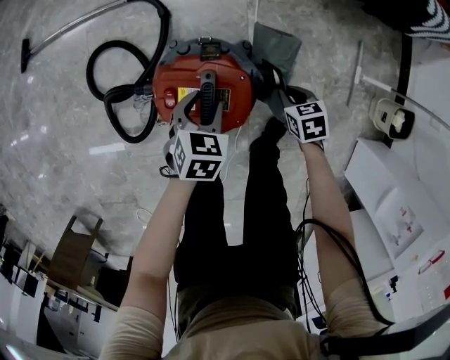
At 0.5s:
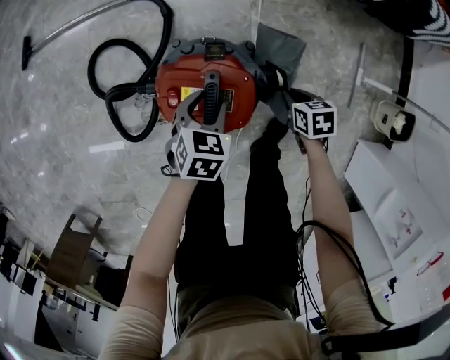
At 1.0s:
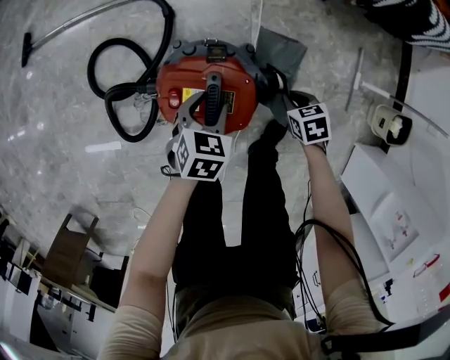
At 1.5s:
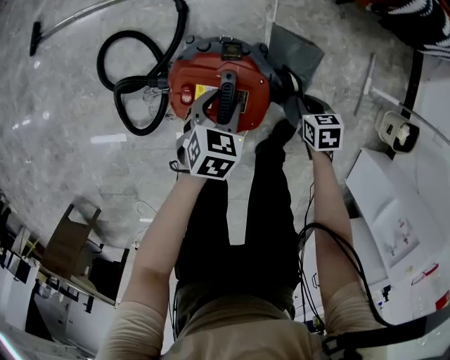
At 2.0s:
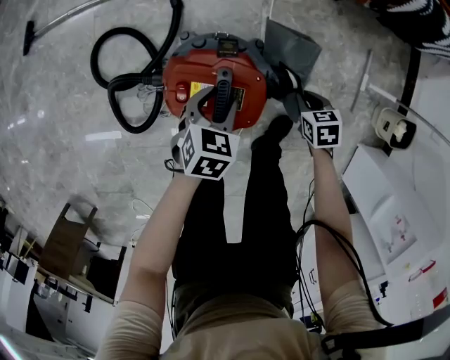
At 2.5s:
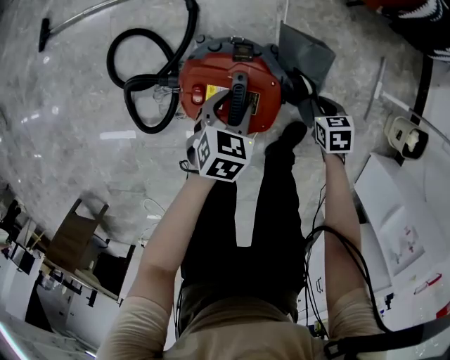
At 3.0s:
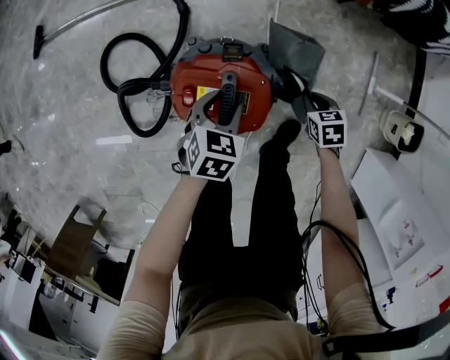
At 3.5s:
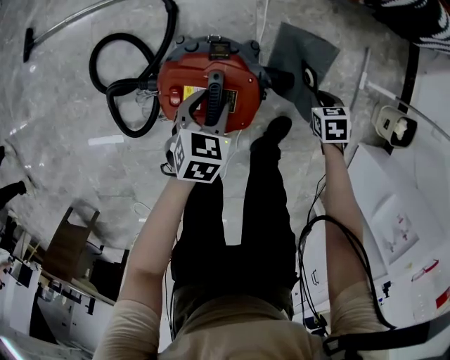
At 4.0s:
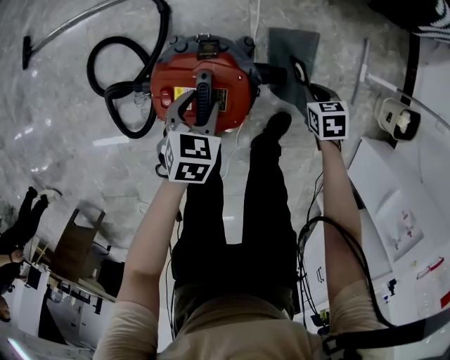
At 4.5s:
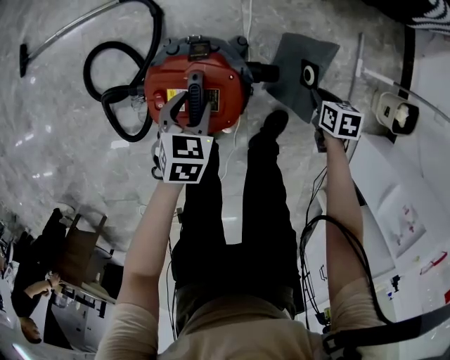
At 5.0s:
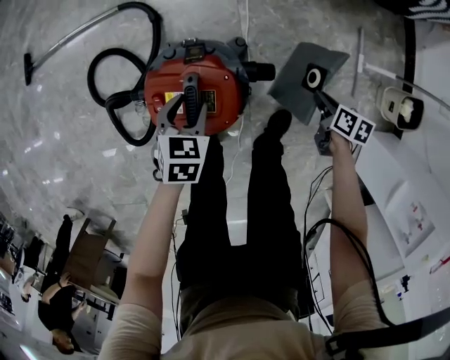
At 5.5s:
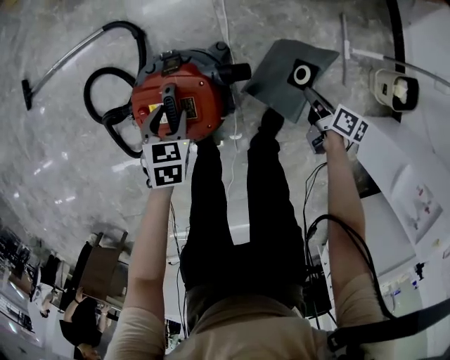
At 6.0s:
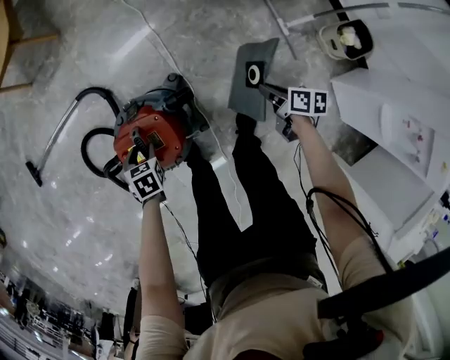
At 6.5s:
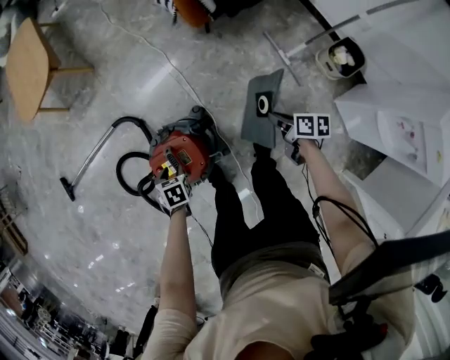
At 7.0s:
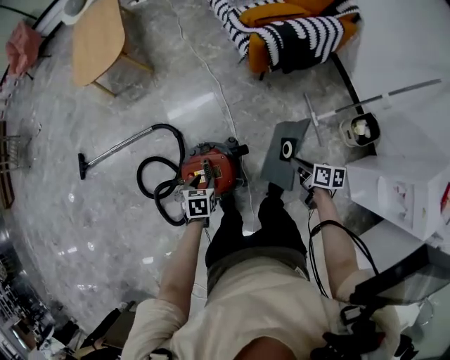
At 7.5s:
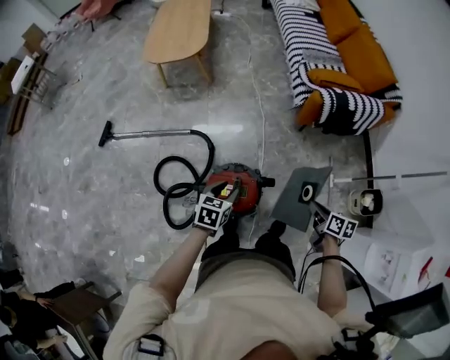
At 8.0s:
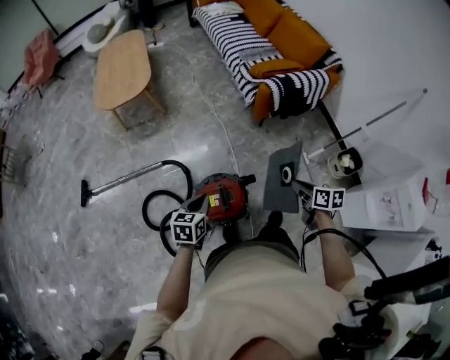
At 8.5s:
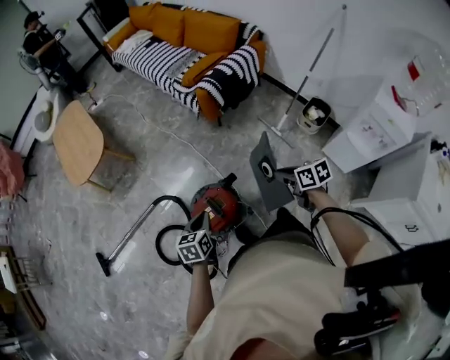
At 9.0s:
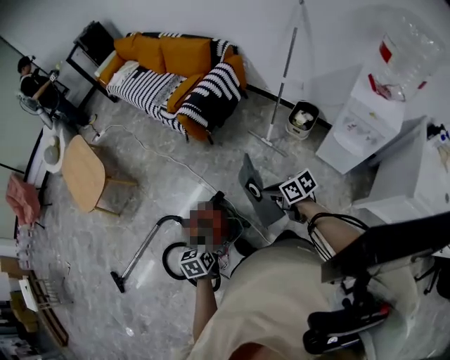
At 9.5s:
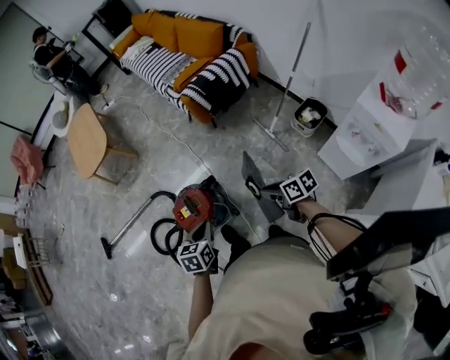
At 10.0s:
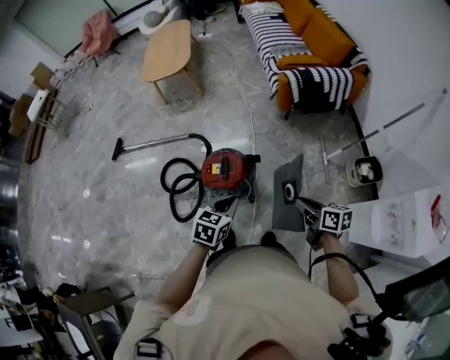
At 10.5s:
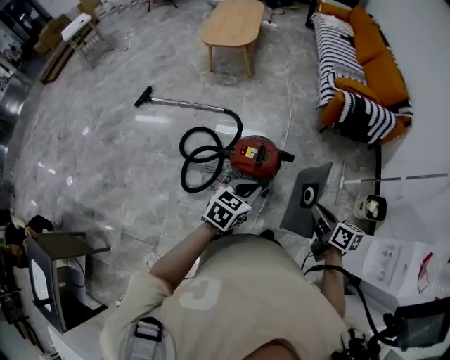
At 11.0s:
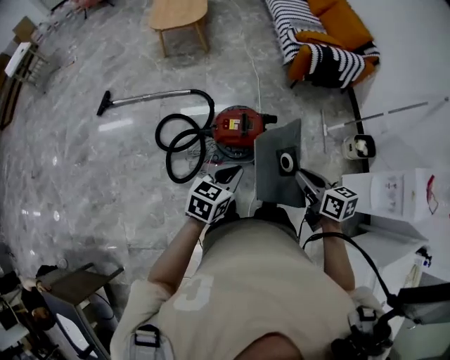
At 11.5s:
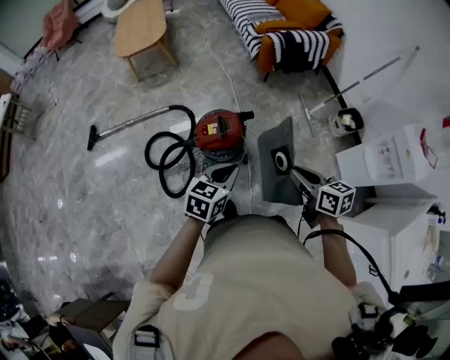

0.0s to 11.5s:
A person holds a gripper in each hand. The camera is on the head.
0.0s to 2.0s: The grippers move only a little.
2.0s to 4.0s: The right gripper moves some 5 cm.
4.0s to 6.0s: The right gripper goes some 15 cm to the right, backward and upward, and twists some 50 degrees clockwise, seen from behind.
6.0s to 7.5s: The grippers both shift upward by about 30 cm. The left gripper swivels approximately 30 degrees.
7.5s to 9.5s: Both grippers move backward and to the right, roughly 25 cm. The left gripper closes.
9.5s to 11.5s: The left gripper is displaced to the left and backward by about 15 cm. The right gripper heads to the left, backward and upward, covering approximately 25 cm.

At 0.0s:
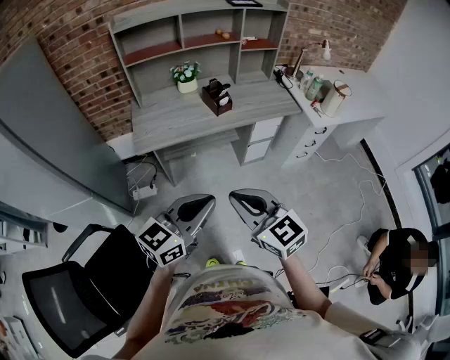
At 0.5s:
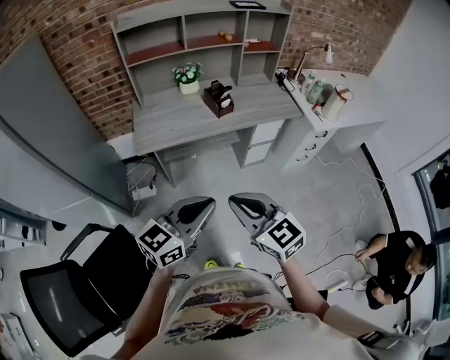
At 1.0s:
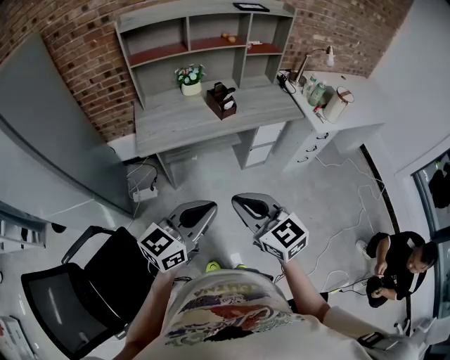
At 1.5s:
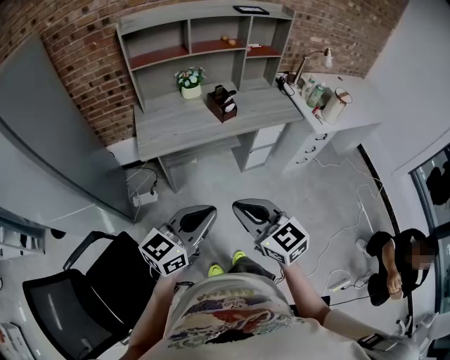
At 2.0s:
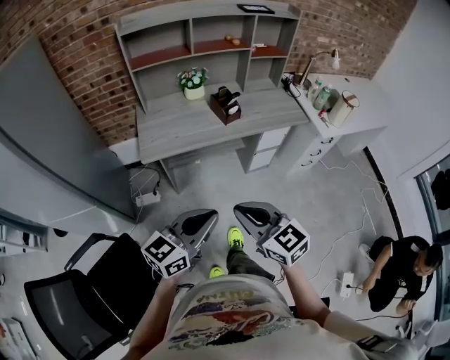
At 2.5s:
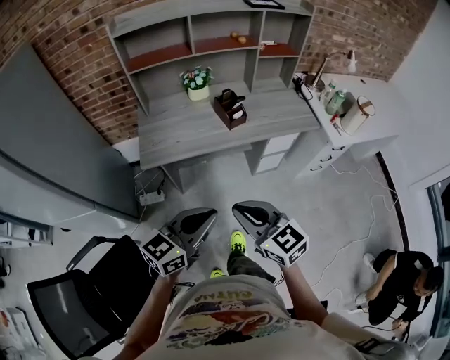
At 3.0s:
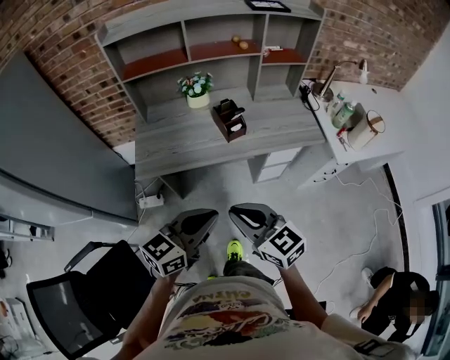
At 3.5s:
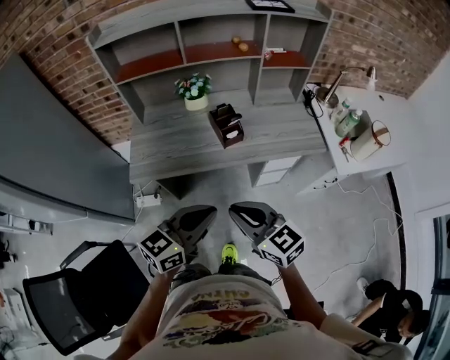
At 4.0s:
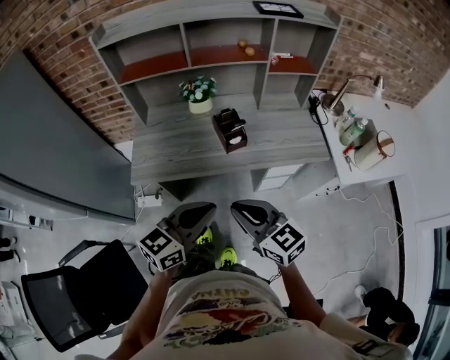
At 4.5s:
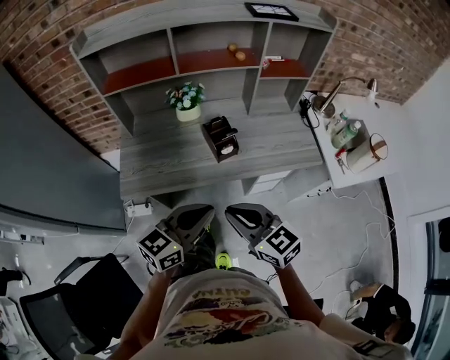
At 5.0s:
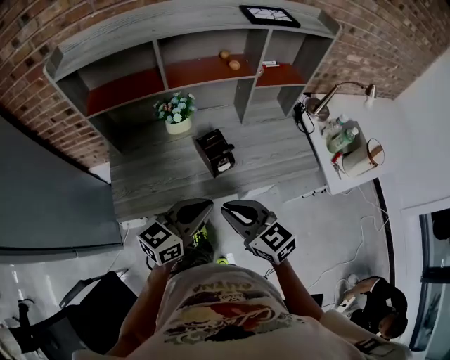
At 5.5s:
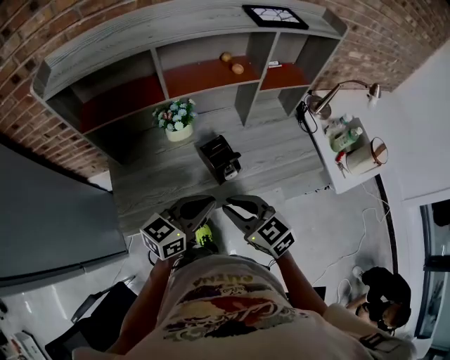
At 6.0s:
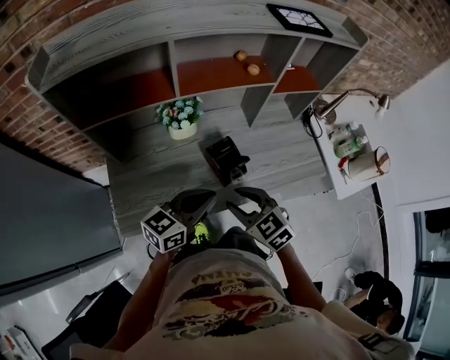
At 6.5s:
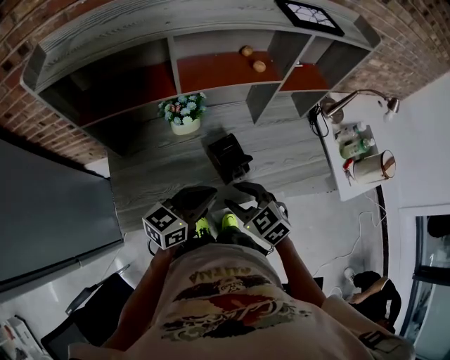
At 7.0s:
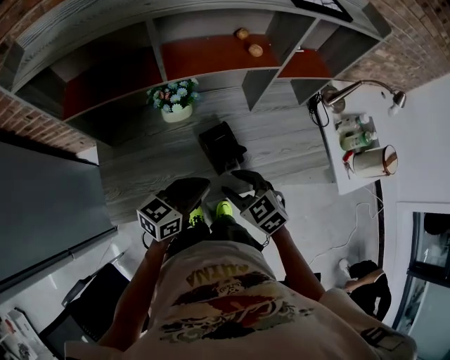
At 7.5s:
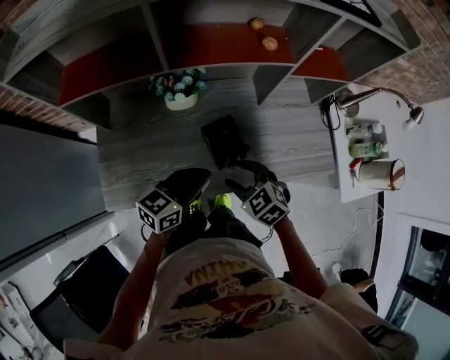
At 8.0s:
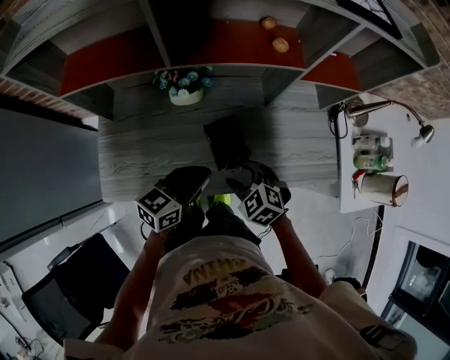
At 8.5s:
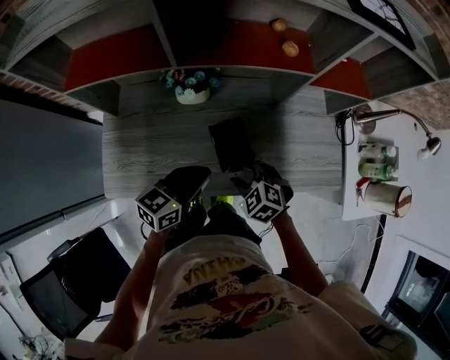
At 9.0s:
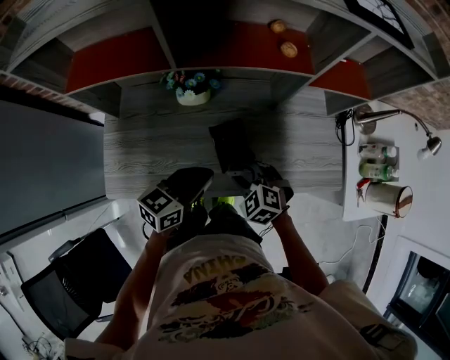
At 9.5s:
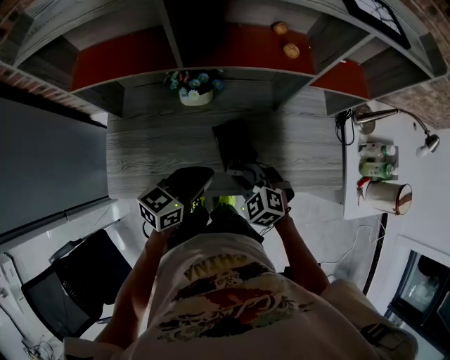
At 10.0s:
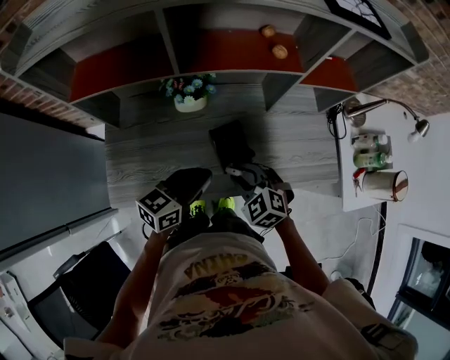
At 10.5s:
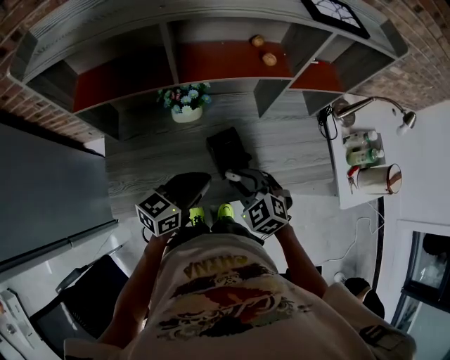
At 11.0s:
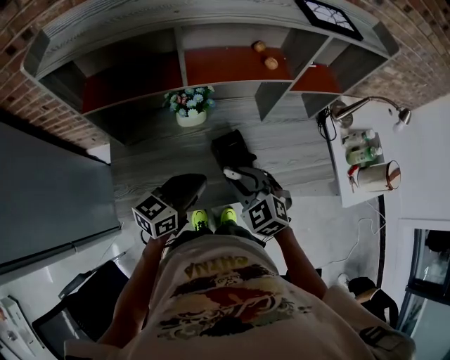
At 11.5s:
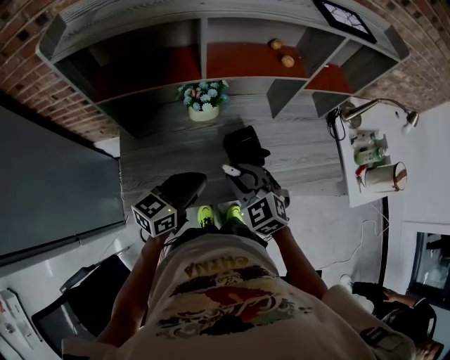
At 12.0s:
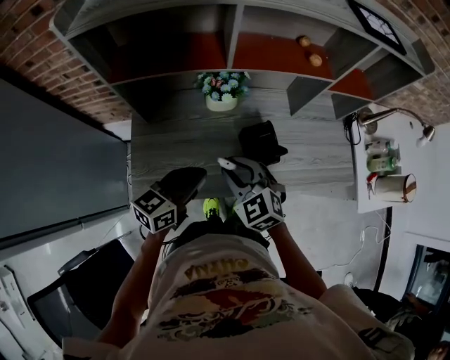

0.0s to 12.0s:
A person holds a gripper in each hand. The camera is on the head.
0.0s to 2.0s: The grippers make only small movements.
2.0s to 4.0s: Both grippers travel together forward and to the right, about 25 cm.
4.0s to 6.0s: Both grippers move forward, approximately 25 cm. The right gripper turns by approximately 30 degrees, and opens.
6.0s to 8.0s: Both grippers travel together downward and forward, roughly 10 cm. The right gripper turns by some 30 degrees.
8.0s to 10.0s: The right gripper closes its fingers.
10.0s to 12.0s: The left gripper is displaced to the left by about 10 cm; the right gripper travels to the left and upward by roughly 15 cm.

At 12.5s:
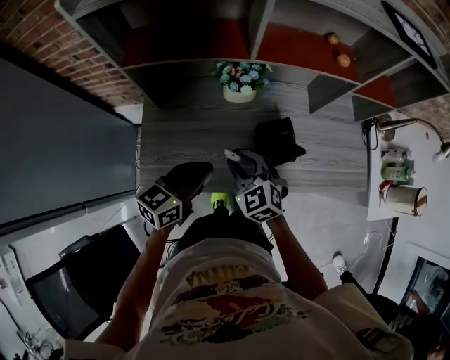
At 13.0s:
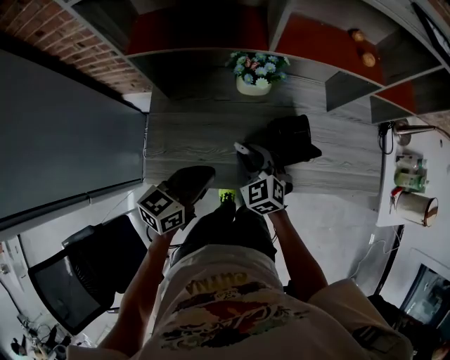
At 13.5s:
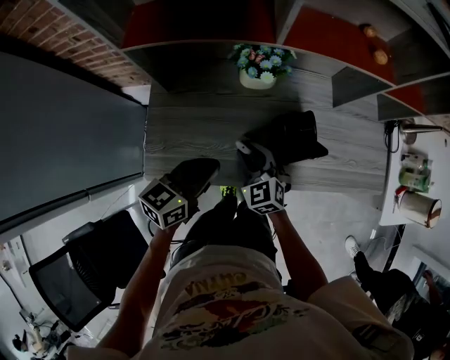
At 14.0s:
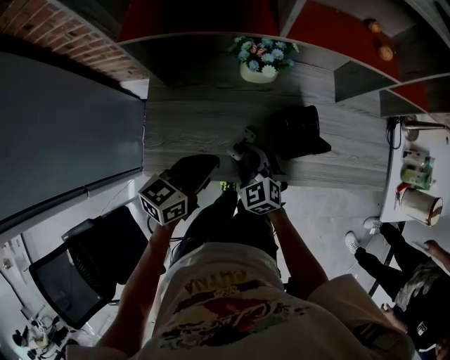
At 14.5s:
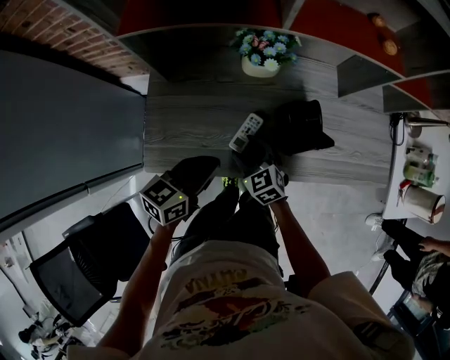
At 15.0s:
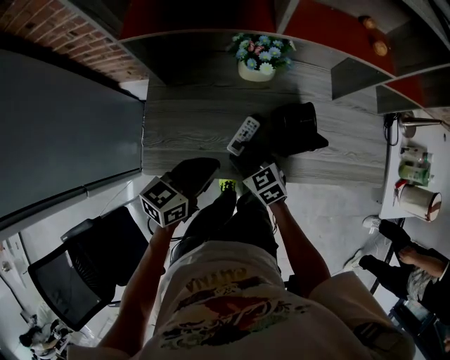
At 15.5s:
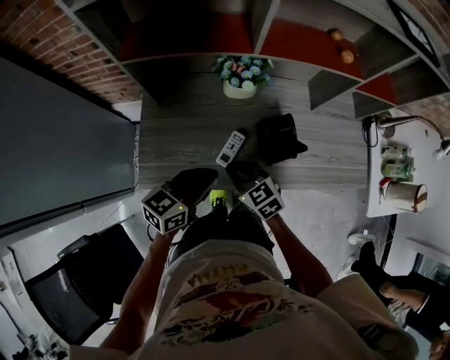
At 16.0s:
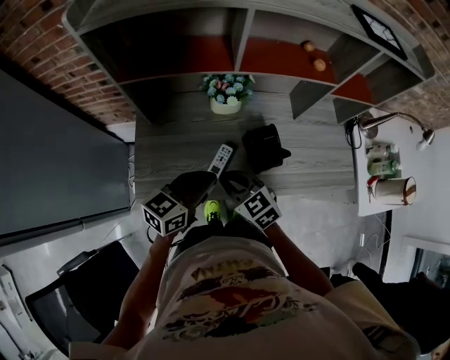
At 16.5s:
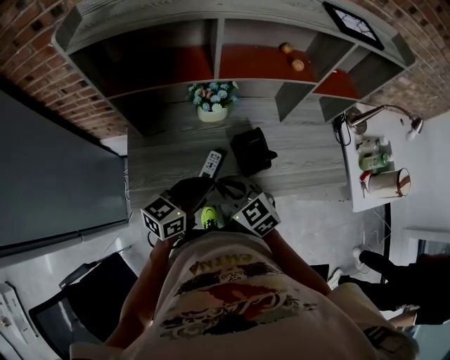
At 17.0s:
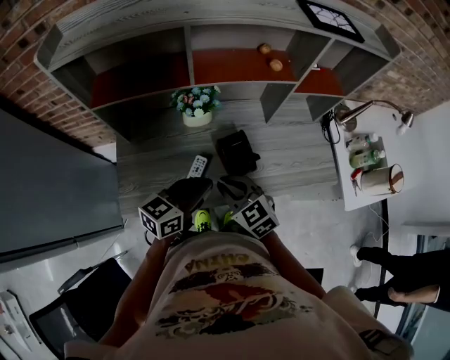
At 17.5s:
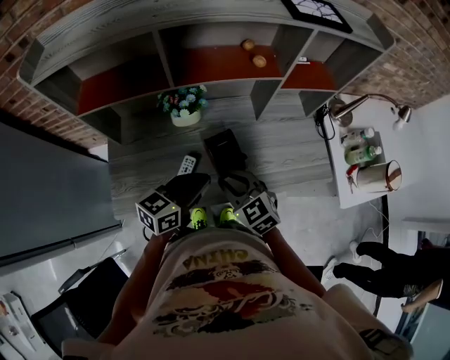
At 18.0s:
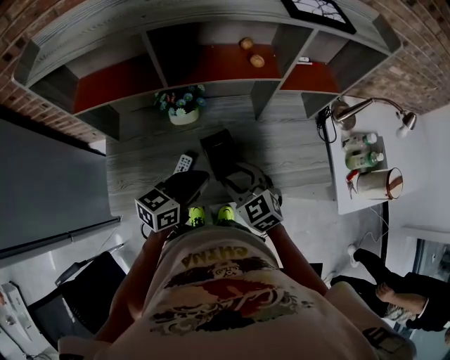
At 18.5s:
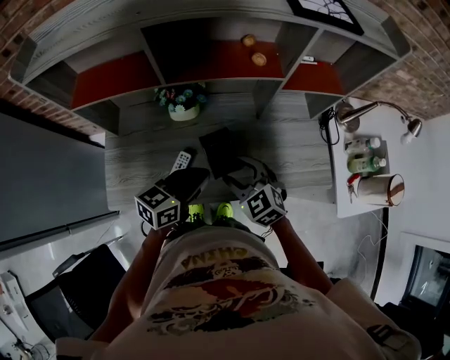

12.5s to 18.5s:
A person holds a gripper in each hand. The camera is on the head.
12.5s to 14.5s: The right gripper is displaced downward by about 15 cm, and opens its fingers, while the left gripper moves downward, roughly 5 cm.
14.5s to 16.5s: The left gripper heads upward and to the right, covering roughly 10 cm. Meanwhile the right gripper shifts roughly 15 cm upward, and closes.
16.5s to 18.5s: The two grippers go about 15 cm to the right and forward. The right gripper opens.
